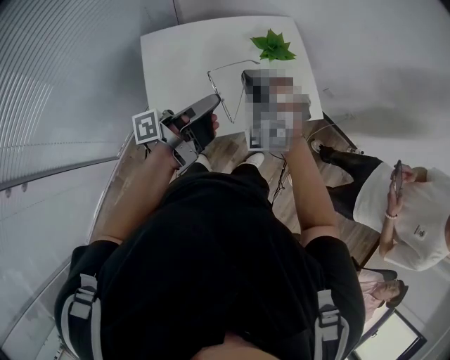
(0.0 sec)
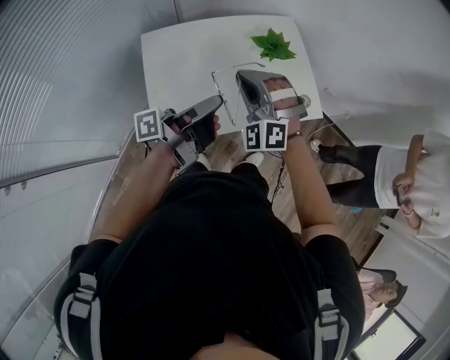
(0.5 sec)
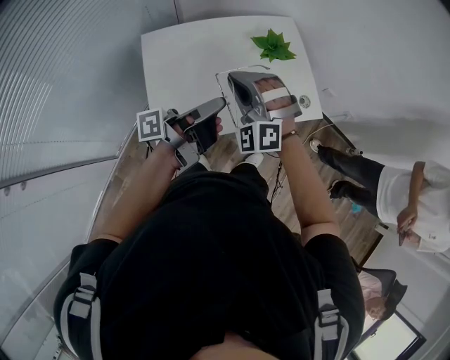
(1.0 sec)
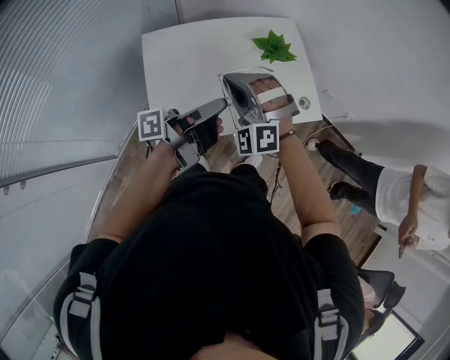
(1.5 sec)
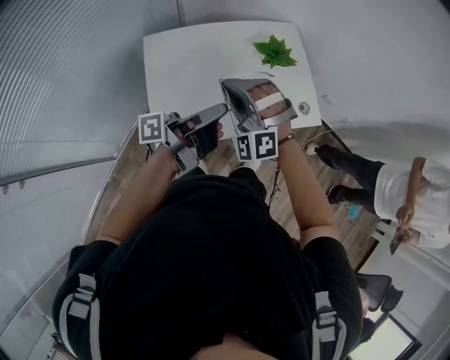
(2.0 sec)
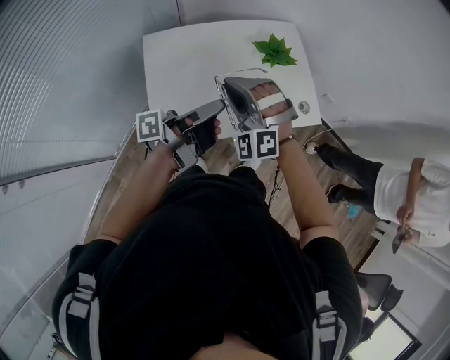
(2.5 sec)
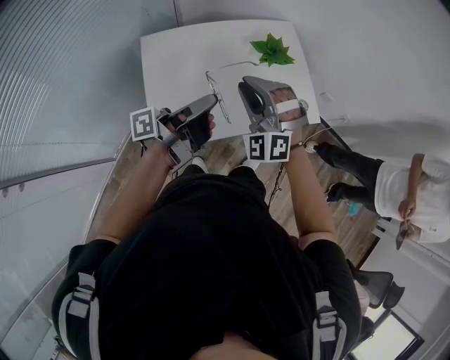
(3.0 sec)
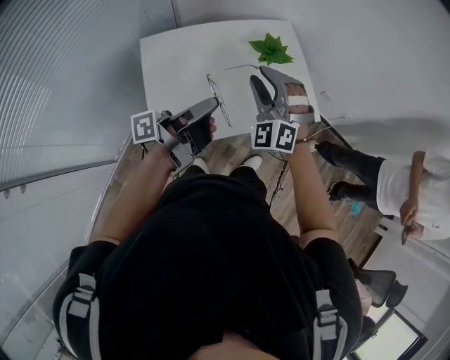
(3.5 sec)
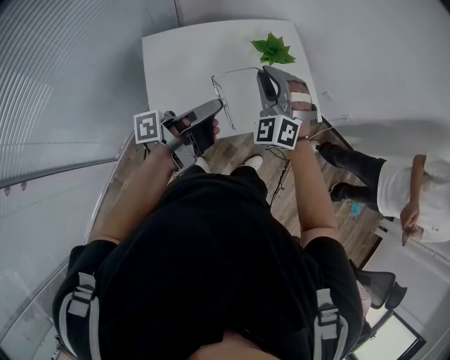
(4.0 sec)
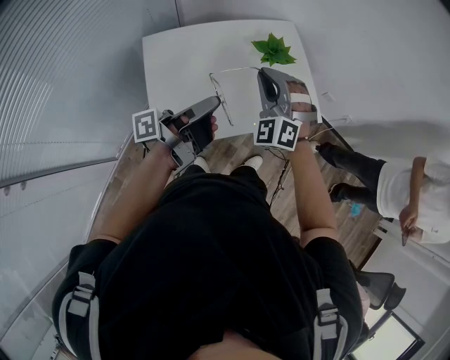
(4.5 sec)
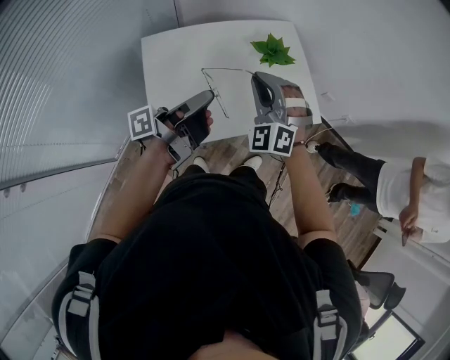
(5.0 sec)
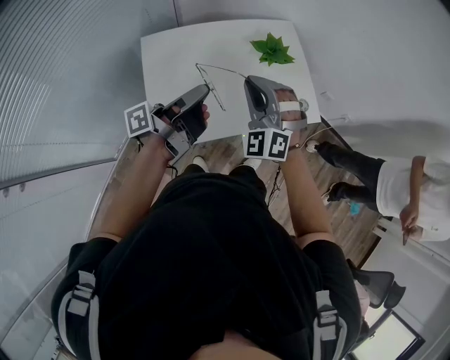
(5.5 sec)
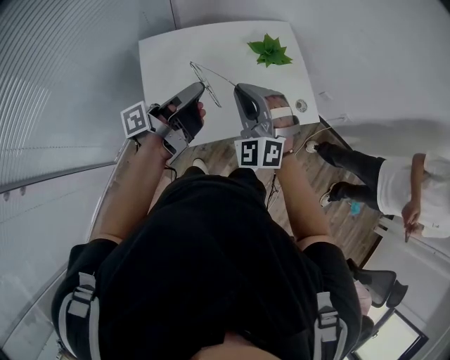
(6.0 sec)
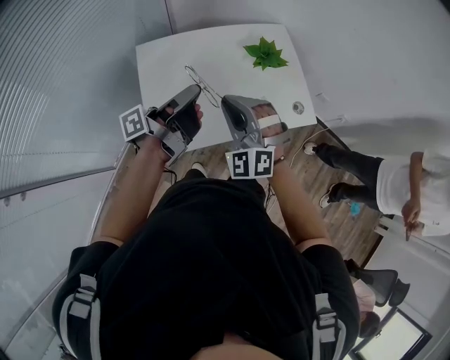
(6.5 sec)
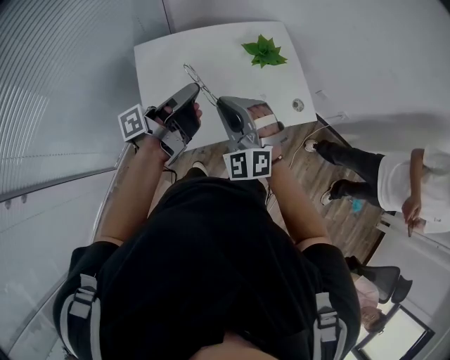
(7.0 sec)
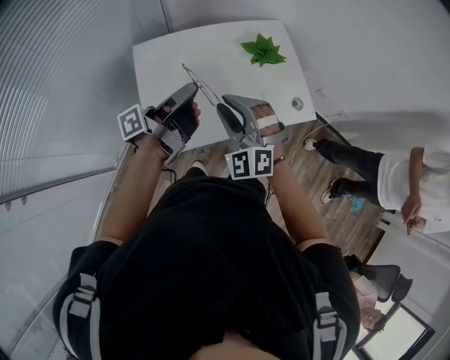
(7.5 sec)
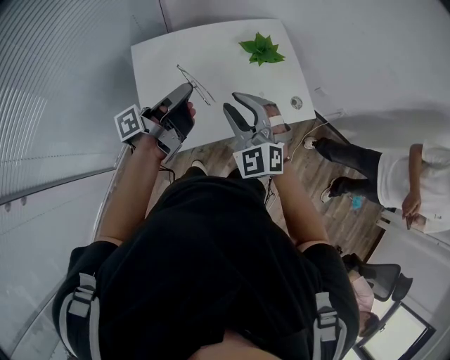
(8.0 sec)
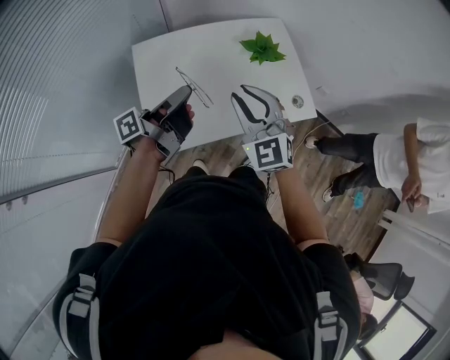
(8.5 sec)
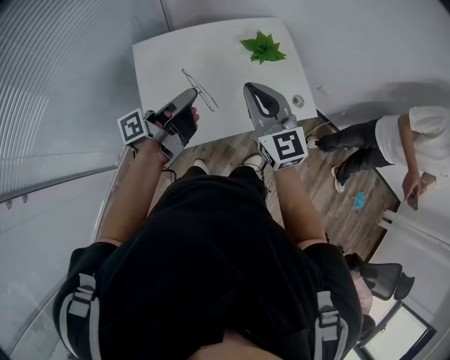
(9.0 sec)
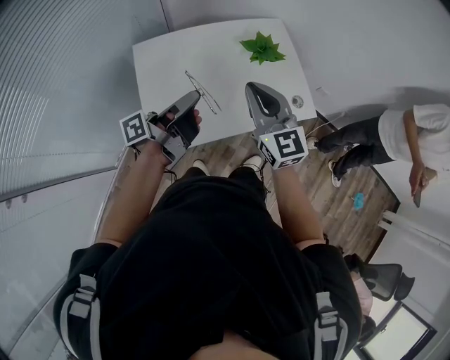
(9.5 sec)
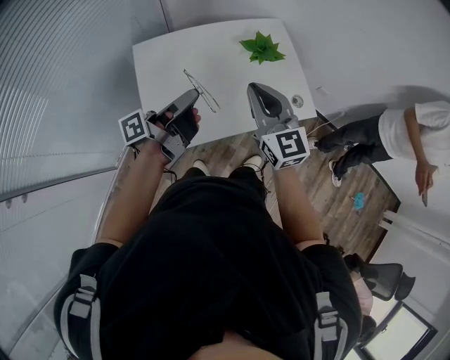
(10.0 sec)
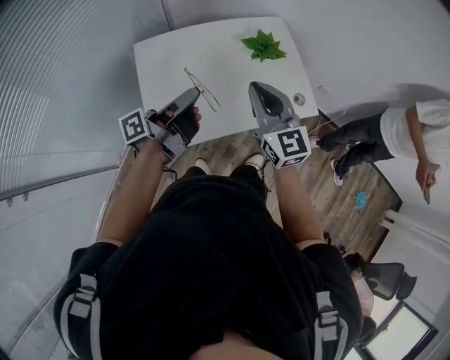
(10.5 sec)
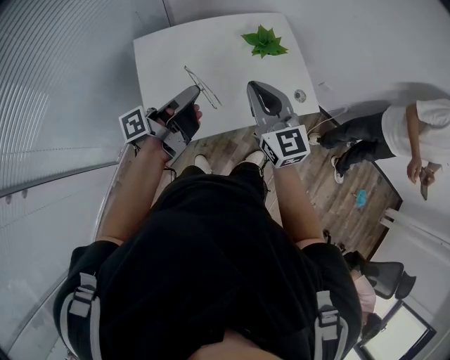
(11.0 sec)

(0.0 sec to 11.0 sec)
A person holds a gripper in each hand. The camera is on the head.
0.0 sec - 2.0 sec: The right gripper ends up about 5 cm from where it was.
2.0 sec - 3.5 sec: The right gripper moves about 10 cm, turns by roughly 20 degrees, and opens its fingers.
3.5 sec - 5.5 sec: The right gripper closes.
5.5 sec - 7.5 sec: The right gripper moves about 5 cm, and opens.
7.5 sec - 9.0 sec: The right gripper ends up about 10 cm from where it was, twists about 50 degrees clockwise, seen from behind, and closes its fingers.

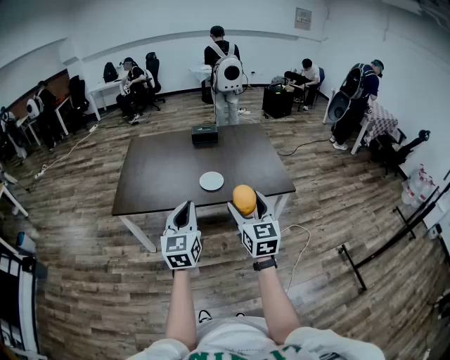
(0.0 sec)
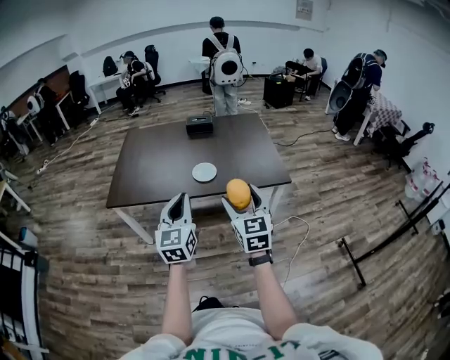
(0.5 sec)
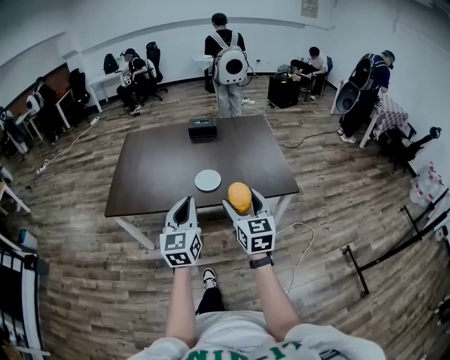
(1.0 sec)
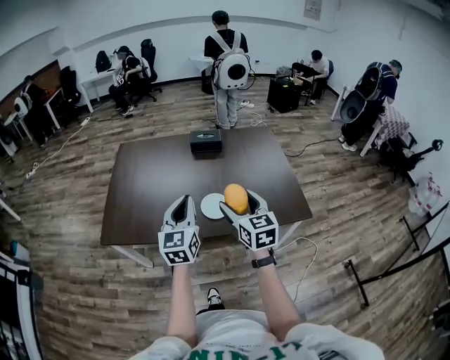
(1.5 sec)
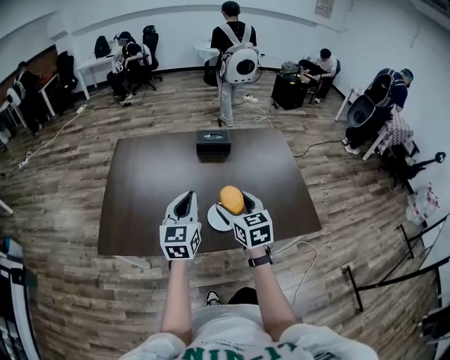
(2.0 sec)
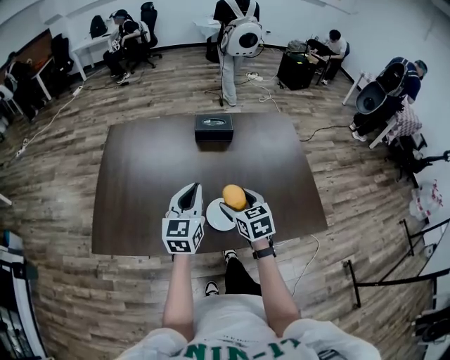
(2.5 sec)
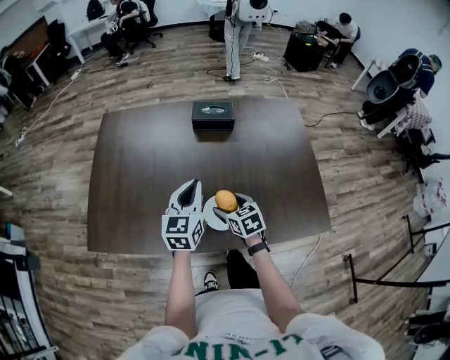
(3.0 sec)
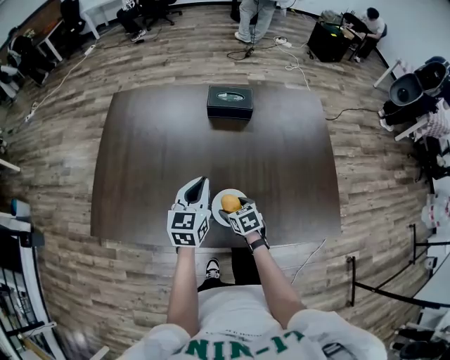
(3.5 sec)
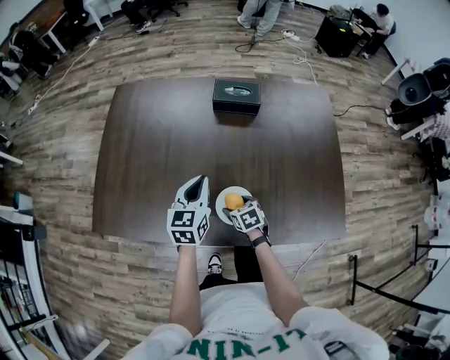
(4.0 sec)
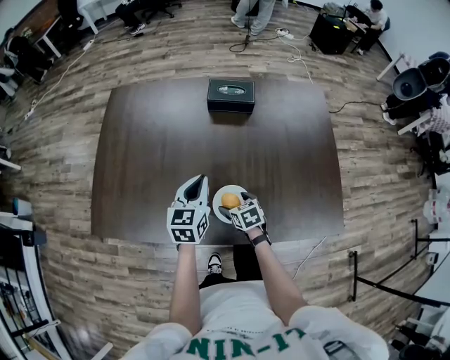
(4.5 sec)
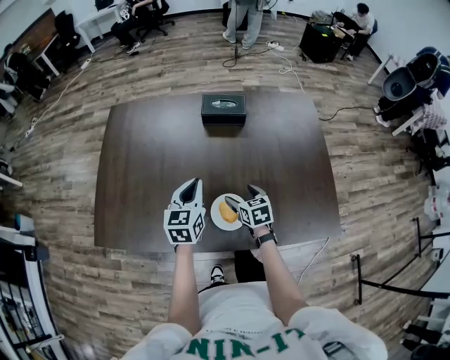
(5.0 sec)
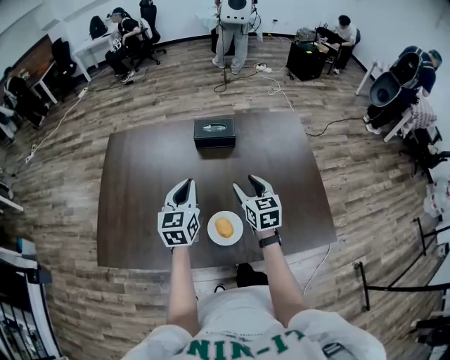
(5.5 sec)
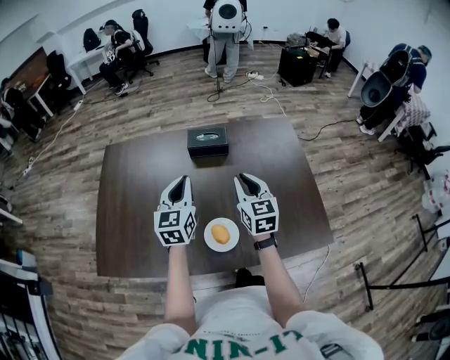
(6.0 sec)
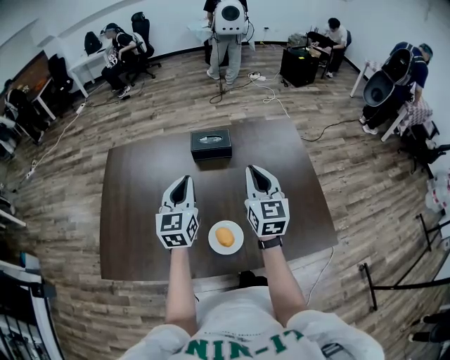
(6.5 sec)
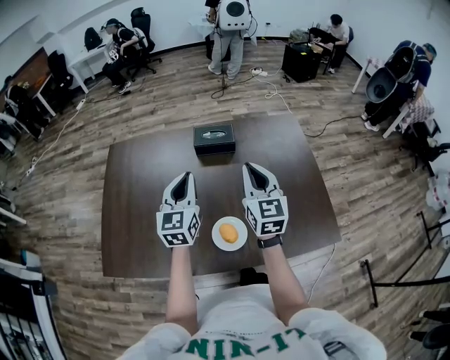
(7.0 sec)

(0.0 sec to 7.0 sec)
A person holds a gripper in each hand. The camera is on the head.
0.0 sec - 2.0 sec: The pair of grippers is taken forward, approximately 40 cm. The right gripper rotates approximately 20 degrees.
2.0 sec - 3.5 sec: The right gripper goes approximately 30 cm downward, and angles its fingers downward, by some 30 degrees. Meanwhile the left gripper travels forward, downward and to the right by about 25 cm.
3.5 sec - 5.0 sec: The right gripper heads upward and to the right, covering roughly 10 cm.
5.0 sec - 7.0 sec: The right gripper moves upward, about 30 cm, points its fingers some 40 degrees further upward, and closes its fingers. Meanwhile the left gripper is displaced upward by about 15 cm.

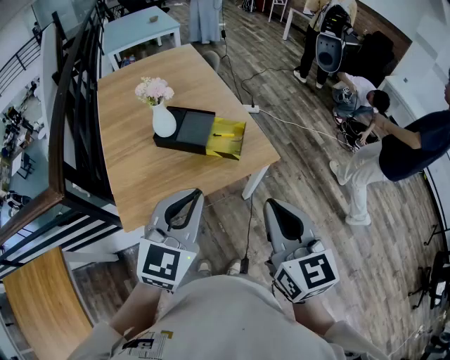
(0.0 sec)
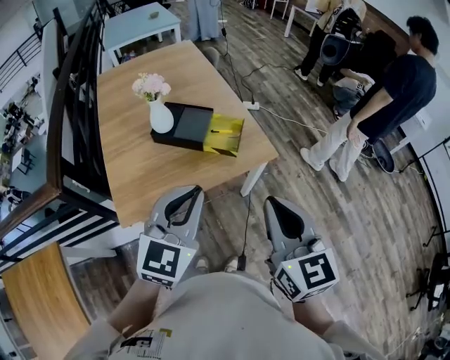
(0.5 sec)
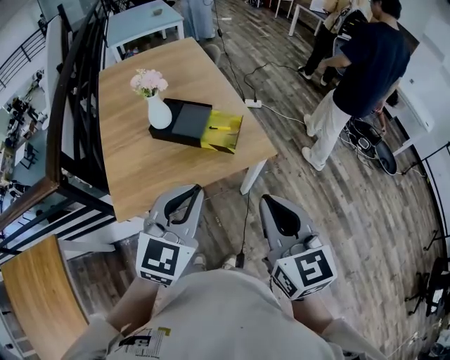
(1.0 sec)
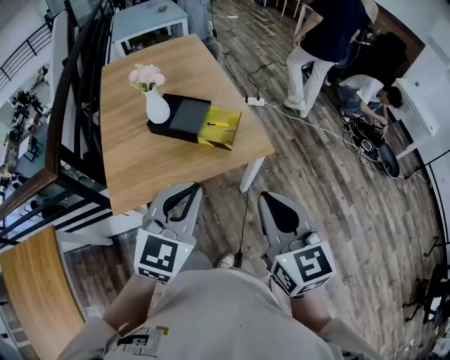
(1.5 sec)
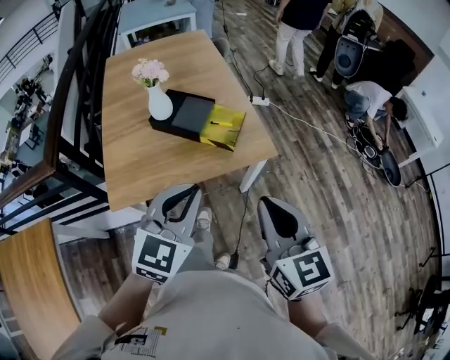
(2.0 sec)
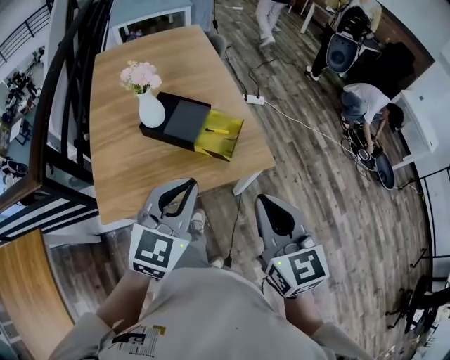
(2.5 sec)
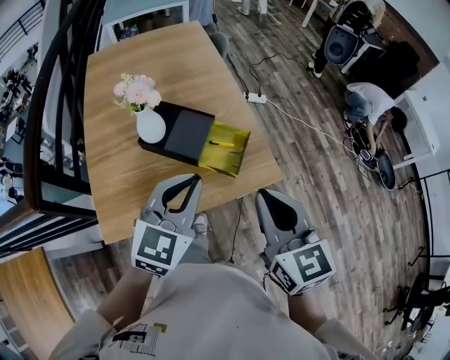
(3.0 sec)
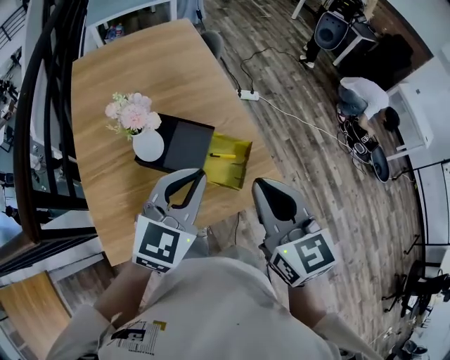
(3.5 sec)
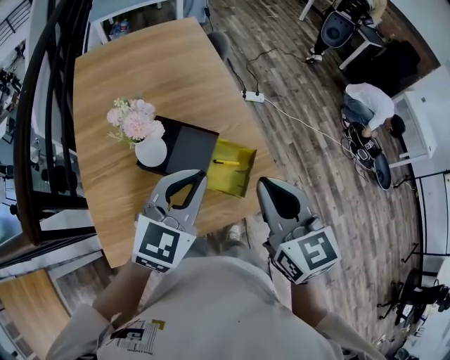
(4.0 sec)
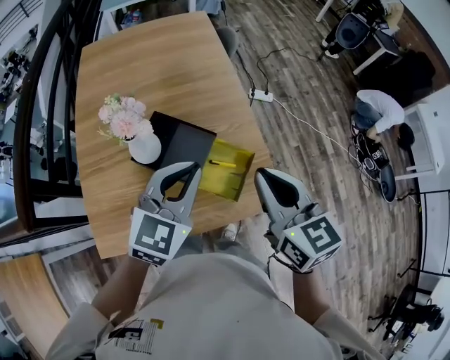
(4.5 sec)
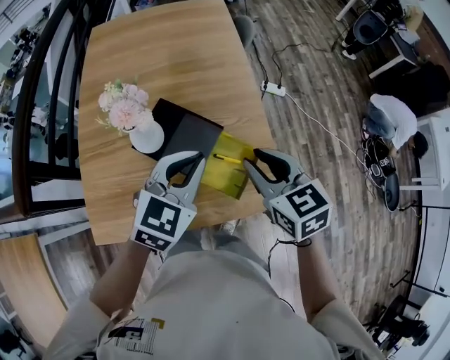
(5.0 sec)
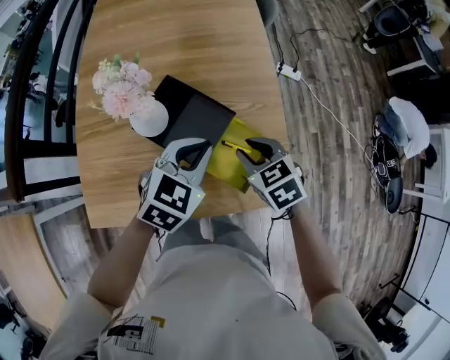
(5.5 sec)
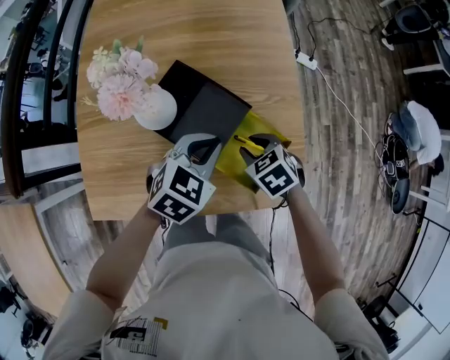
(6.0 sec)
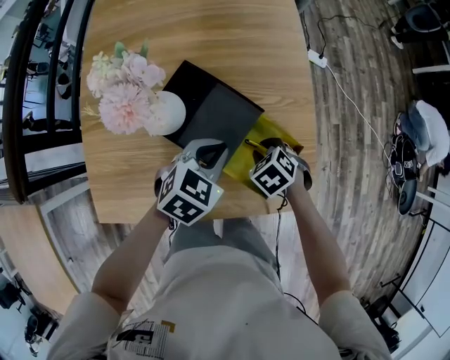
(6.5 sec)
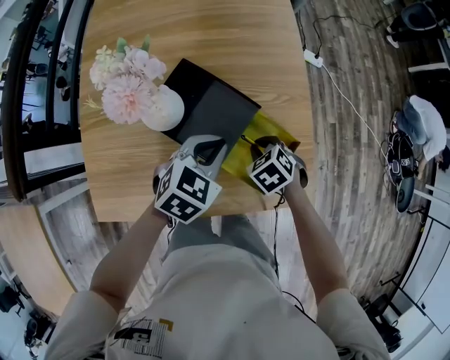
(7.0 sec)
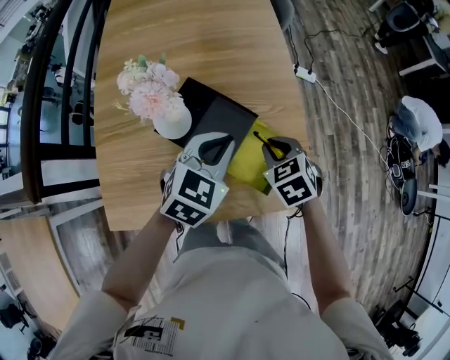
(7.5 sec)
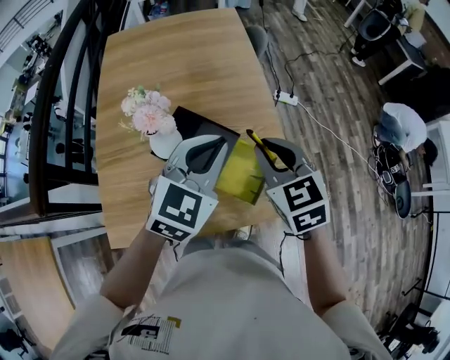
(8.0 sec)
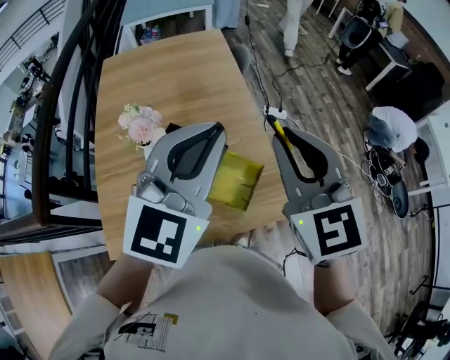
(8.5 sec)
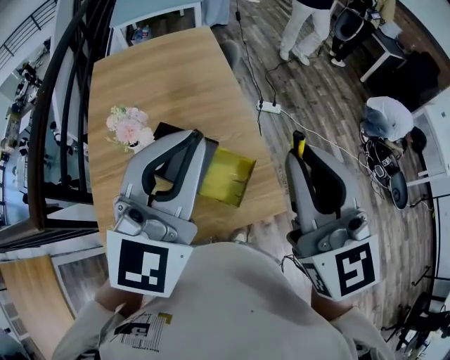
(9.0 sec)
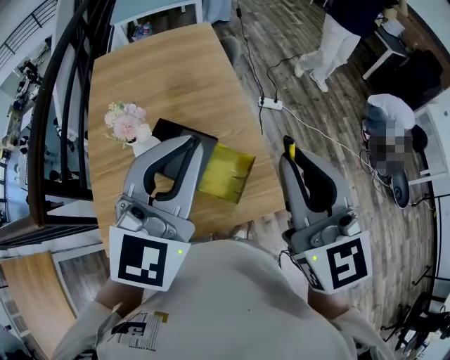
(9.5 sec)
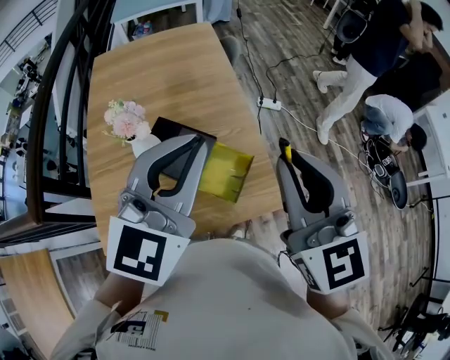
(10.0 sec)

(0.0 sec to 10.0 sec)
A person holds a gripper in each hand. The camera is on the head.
0.0 sec - 2.0 sec: The grippers both shift to the right by roughly 5 cm.
2.0 sec - 4.0 sec: Both grippers travel together forward, some 30 cm.
4.0 sec - 6.0 sec: The left gripper moves downward and forward, roughly 25 cm, and rotates approximately 30 degrees, while the right gripper travels downward by approximately 35 cm, points its fingers approximately 40 degrees further downward, and opens.
6.0 sec - 8.0 sec: The grippers both shift upward by about 25 cm. The left gripper rotates roughly 30 degrees; the right gripper points its fingers roughly 30 degrees further upward.
8.0 sec - 10.0 sec: The left gripper shifts approximately 15 cm upward and backward. Meanwhile the right gripper goes some 20 cm upward, backward and to the right, and turns by some 30 degrees.
